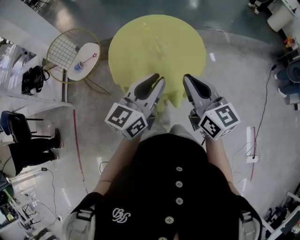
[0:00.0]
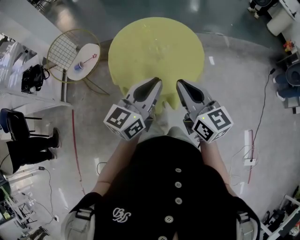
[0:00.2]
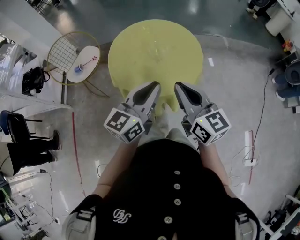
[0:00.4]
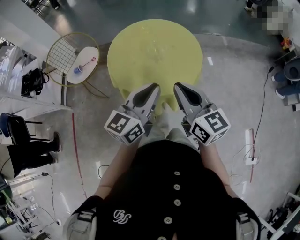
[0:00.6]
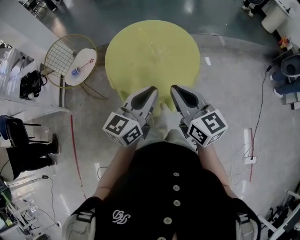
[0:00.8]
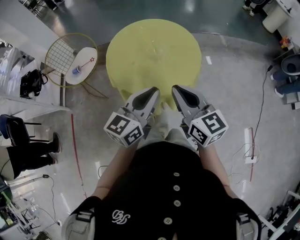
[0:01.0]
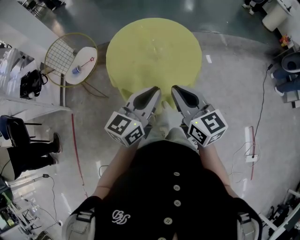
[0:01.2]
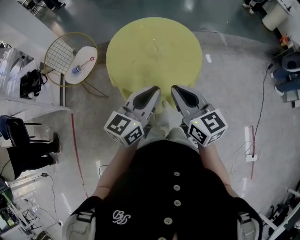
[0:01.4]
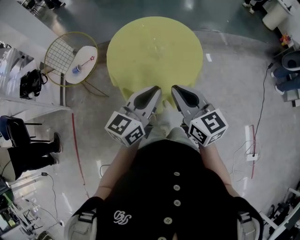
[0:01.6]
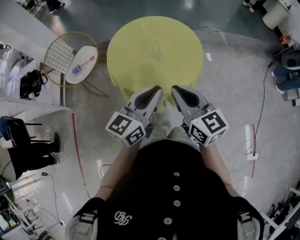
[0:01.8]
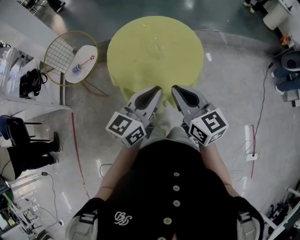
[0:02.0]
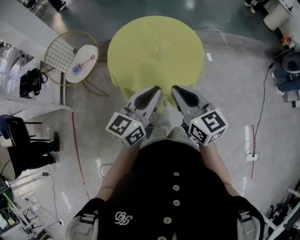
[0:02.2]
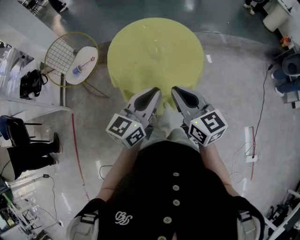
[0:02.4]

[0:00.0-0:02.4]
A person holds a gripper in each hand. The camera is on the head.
0:00.0 to 0:02.4: The grippers stay close to where they were, moving slightly.

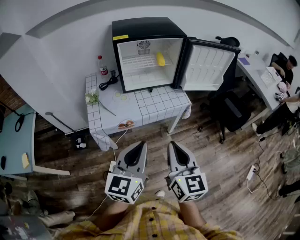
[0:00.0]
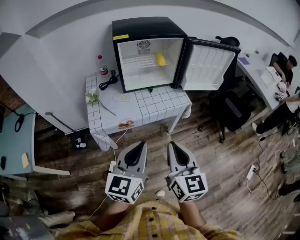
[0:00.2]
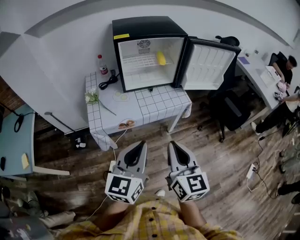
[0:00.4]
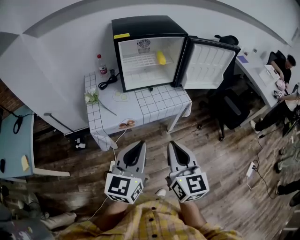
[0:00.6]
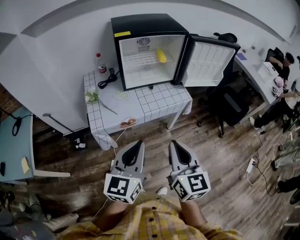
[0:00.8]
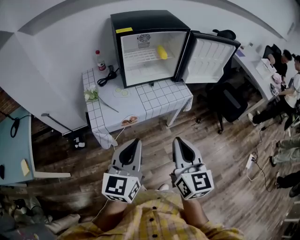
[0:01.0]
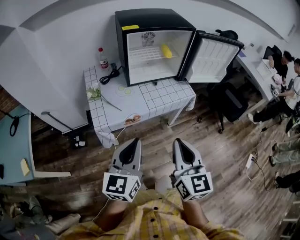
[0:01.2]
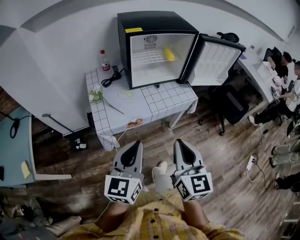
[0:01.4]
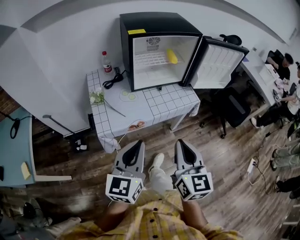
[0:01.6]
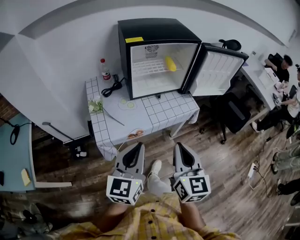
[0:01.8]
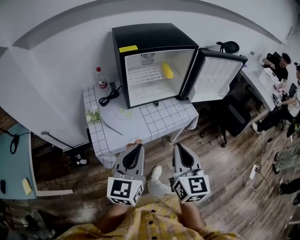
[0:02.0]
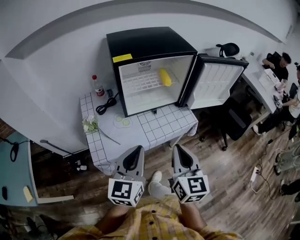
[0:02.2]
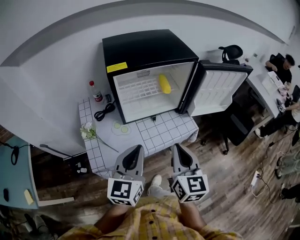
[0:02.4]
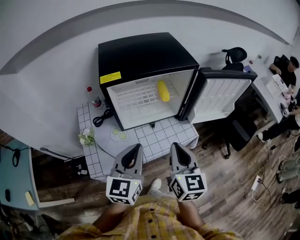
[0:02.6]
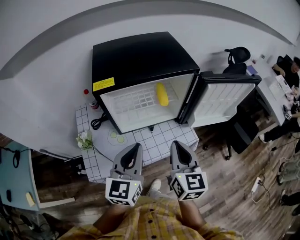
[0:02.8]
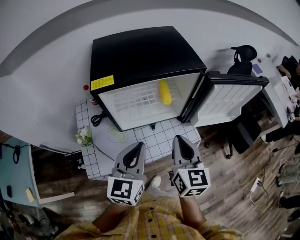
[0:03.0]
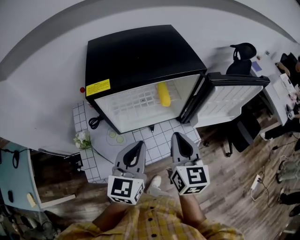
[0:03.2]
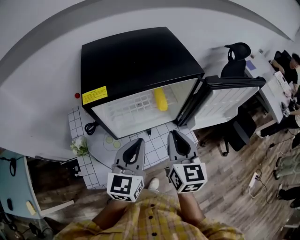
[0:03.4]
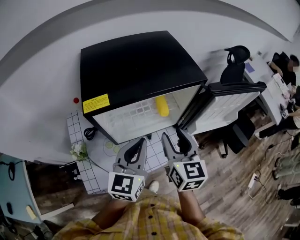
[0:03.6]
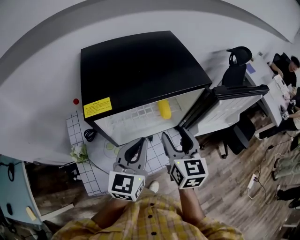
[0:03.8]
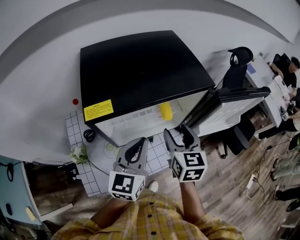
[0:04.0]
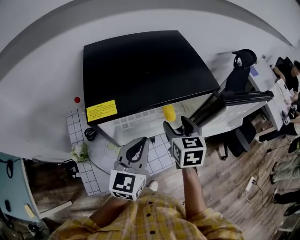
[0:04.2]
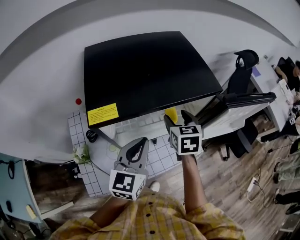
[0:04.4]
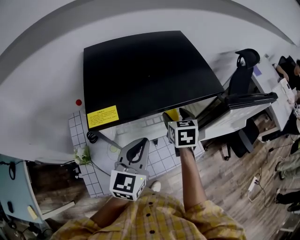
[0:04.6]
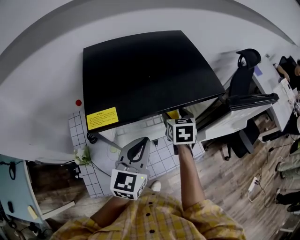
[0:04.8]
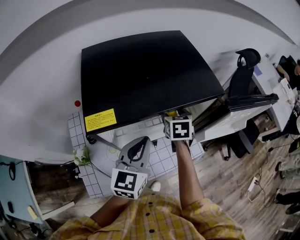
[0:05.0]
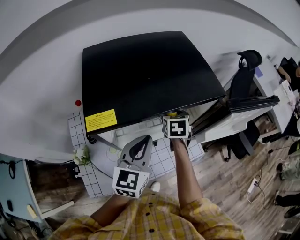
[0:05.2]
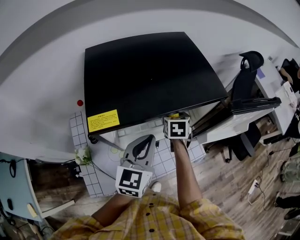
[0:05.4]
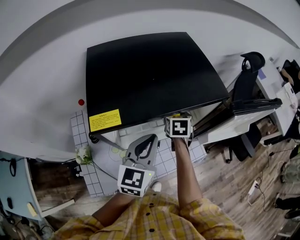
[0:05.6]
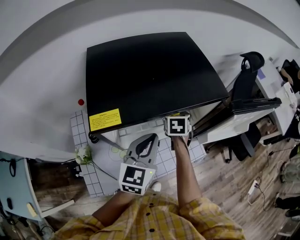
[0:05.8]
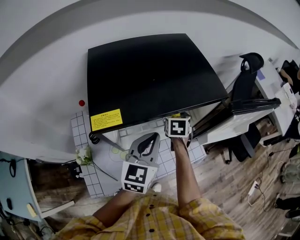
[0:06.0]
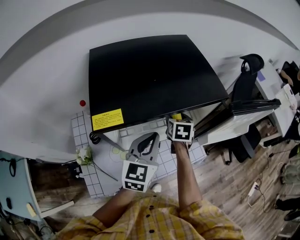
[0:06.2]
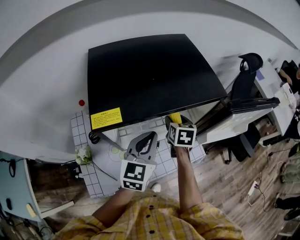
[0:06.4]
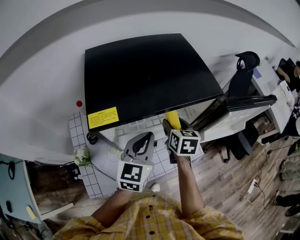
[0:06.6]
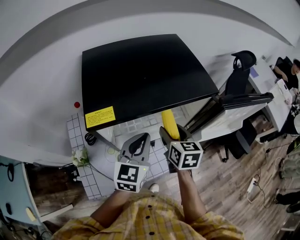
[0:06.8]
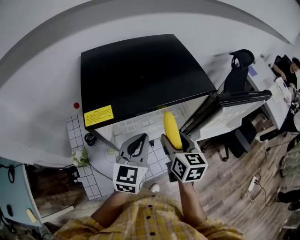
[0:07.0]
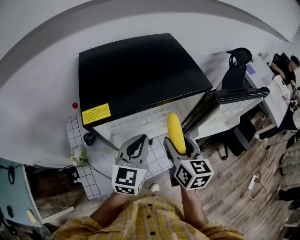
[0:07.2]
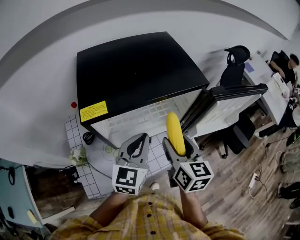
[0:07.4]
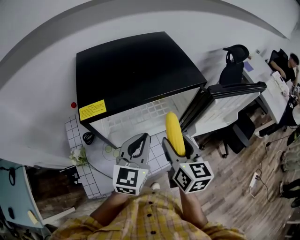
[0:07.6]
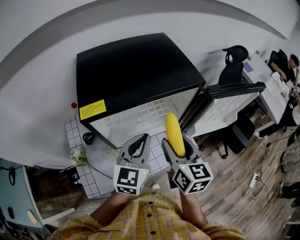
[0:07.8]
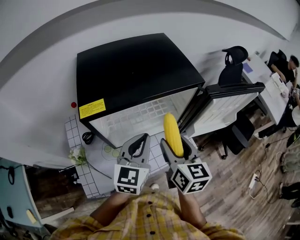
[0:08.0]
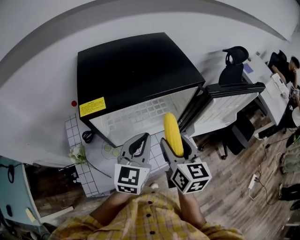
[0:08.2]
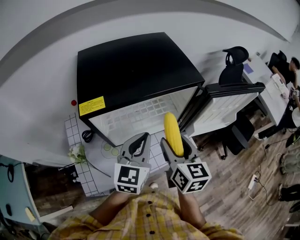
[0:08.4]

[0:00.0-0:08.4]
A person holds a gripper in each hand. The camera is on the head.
0:00.0 to 0:01.4: The two grippers go about 10 cm to the left.
0:01.4 to 0:02.8: Both grippers travel together forward, roughly 30 cm.
0:02.8 to 0:04.2: Both grippers travel together forward, about 15 cm. The right gripper turns by roughly 20 degrees, and opens up.
0:04.2 to 0:05.6: The right gripper travels downward and forward by about 15 cm.
0:05.6 to 0:07.0: The right gripper goes roughly 15 cm backward and upward, and rotates approximately 30 degrees.
0:07.0 to 0:08.4: The left gripper changes place by roughly 5 cm, while the right gripper goes some 5 cm backward.

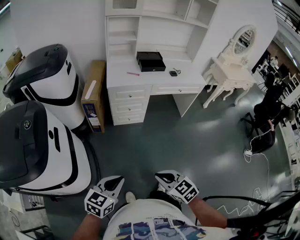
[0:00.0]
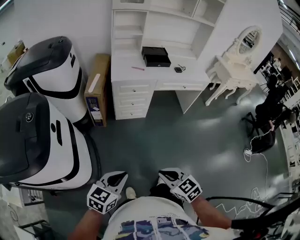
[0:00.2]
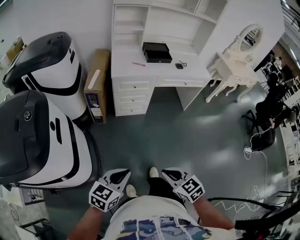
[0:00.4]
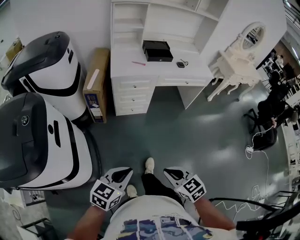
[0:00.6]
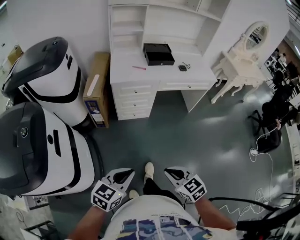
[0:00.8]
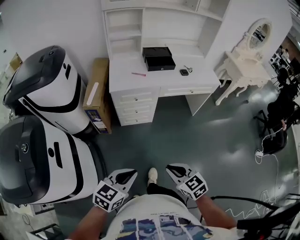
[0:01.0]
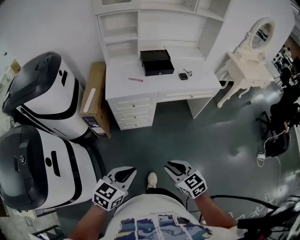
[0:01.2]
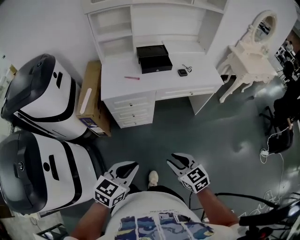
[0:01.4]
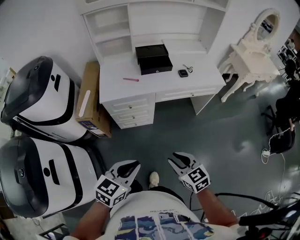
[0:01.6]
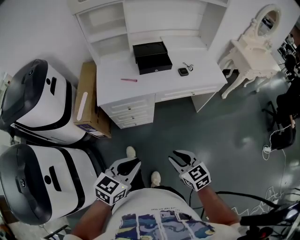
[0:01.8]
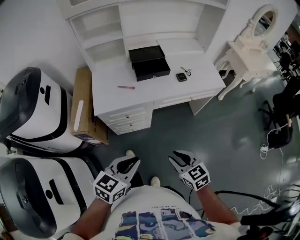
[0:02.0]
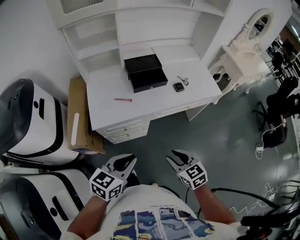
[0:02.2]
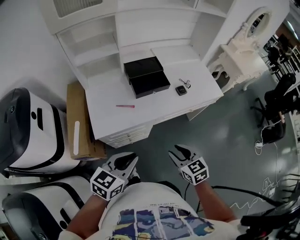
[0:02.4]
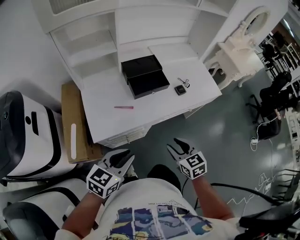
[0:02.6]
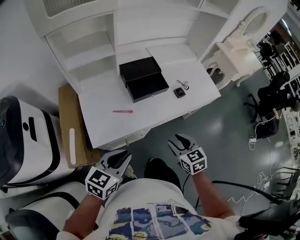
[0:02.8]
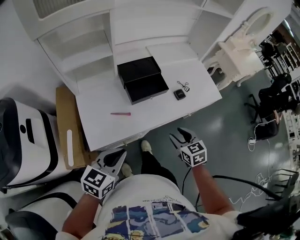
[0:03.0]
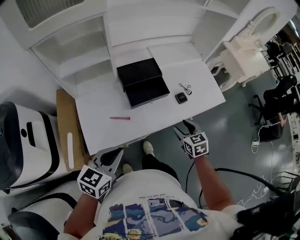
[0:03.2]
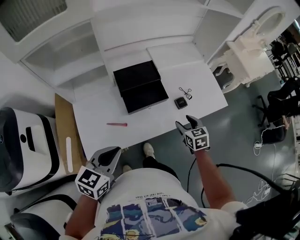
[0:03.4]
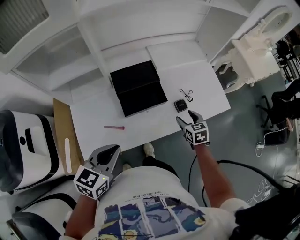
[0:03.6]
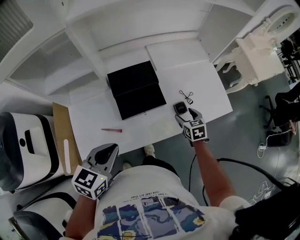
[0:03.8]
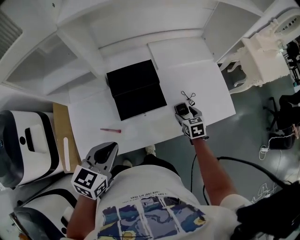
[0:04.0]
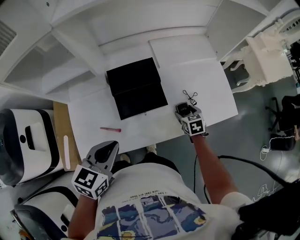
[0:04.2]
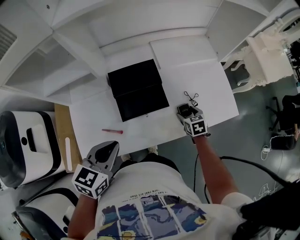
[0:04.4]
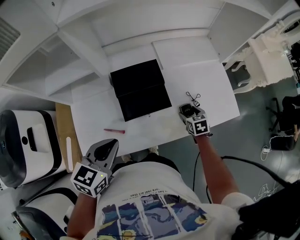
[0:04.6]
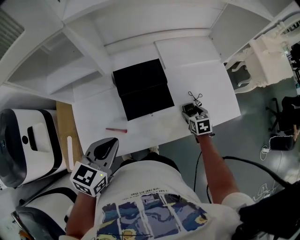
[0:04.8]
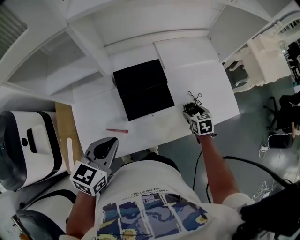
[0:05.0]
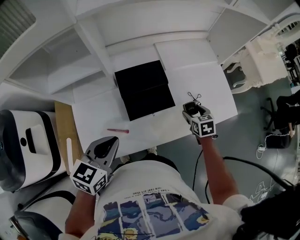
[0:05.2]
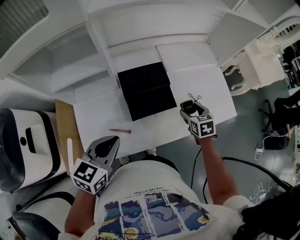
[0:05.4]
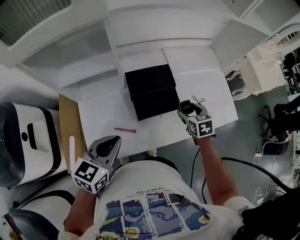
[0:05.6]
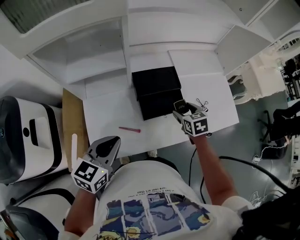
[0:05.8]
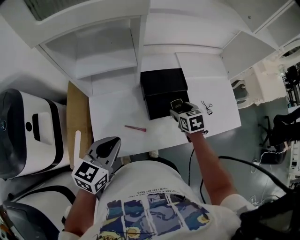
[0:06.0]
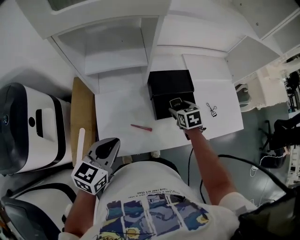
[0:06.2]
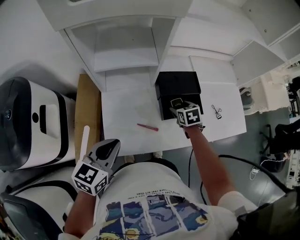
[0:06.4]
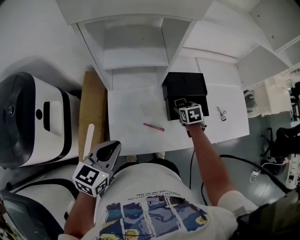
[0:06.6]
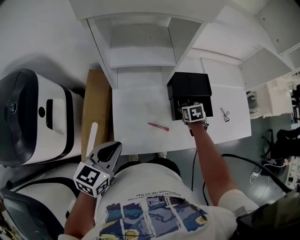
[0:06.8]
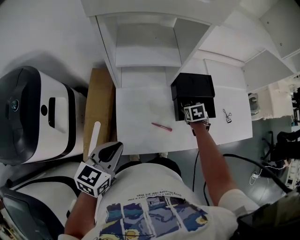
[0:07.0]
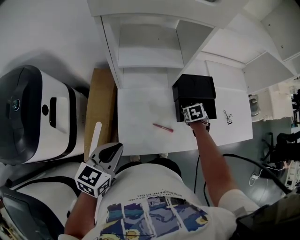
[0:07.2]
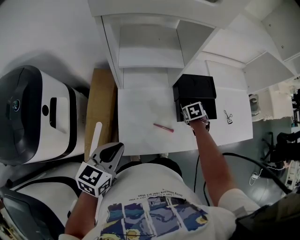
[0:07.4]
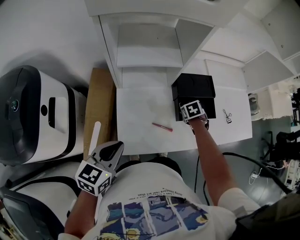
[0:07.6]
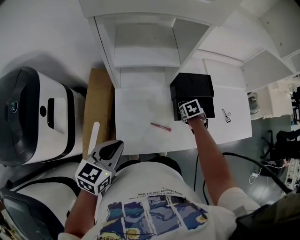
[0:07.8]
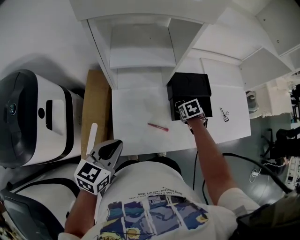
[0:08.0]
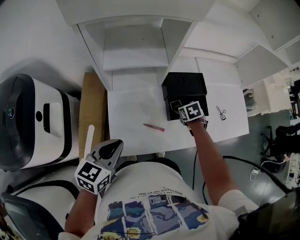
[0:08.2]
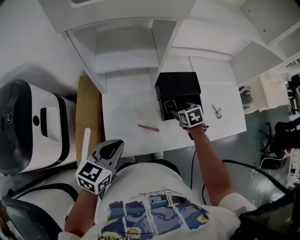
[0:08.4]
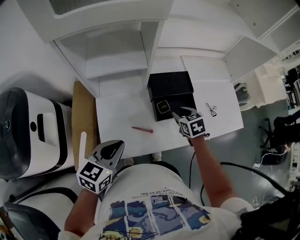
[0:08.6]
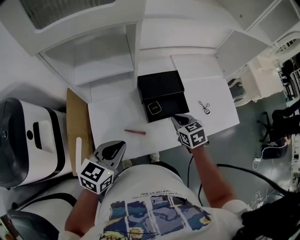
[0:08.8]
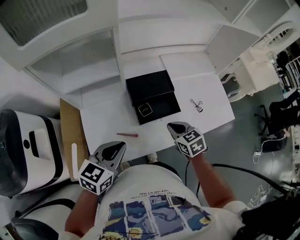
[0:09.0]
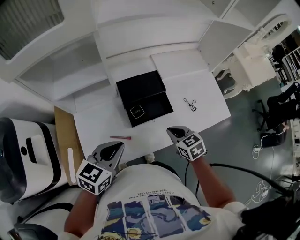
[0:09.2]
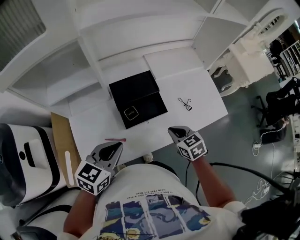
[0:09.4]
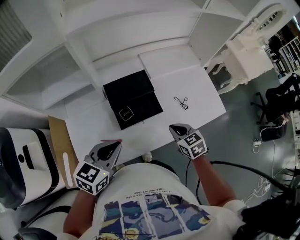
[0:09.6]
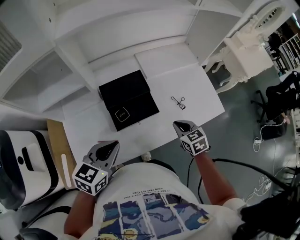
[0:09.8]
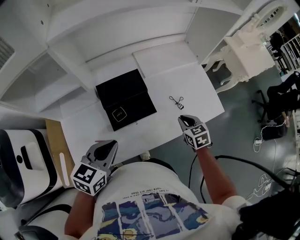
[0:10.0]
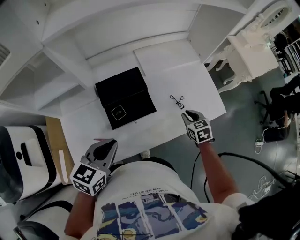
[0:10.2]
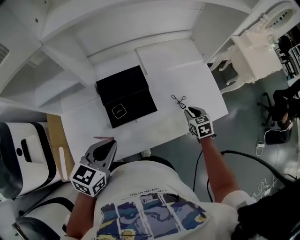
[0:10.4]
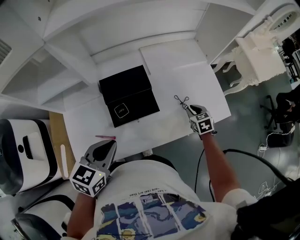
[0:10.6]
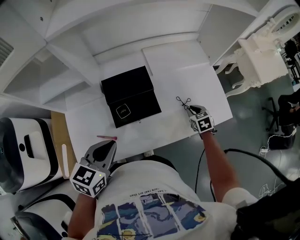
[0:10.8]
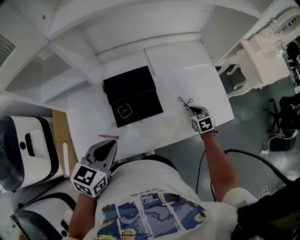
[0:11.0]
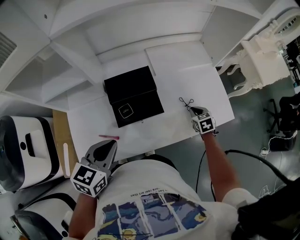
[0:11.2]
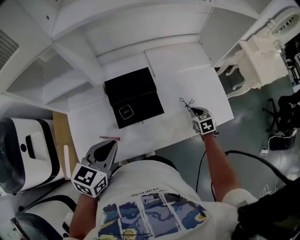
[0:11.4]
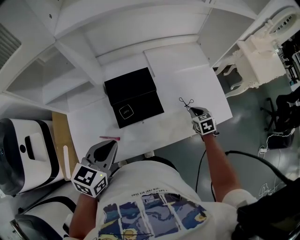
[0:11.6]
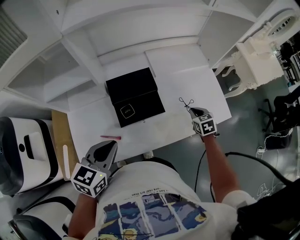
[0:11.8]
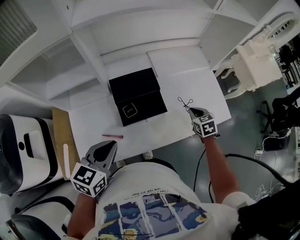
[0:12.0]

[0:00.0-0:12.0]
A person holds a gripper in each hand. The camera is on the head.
0:00.0 to 0:01.6: The left gripper shifts about 30 cm forward and to the right; the right gripper is displaced forward by about 30 cm.
0:01.6 to 0:03.0: The right gripper heads forward, covering roughly 35 cm, and changes its angle by about 20 degrees, while the left gripper travels forward and to the left by about 35 cm.
0:03.0 to 0:04.4: The right gripper shifts about 30 cm forward and downward, and opens up. Meanwhile the left gripper travels forward by approximately 20 cm.
0:04.4 to 0:06.0: The left gripper shifts roughly 10 cm to the left, while the right gripper moves to the left and upward, some 20 cm.
0:06.0 to 0:07.6: The right gripper goes about 10 cm downward, and rotates roughly 20 degrees, while the left gripper moves approximately 15 cm.
0:07.6 to 0:09.0: The right gripper is displaced upward by roughly 15 cm, rotates some 30 degrees, and closes up. Meanwhile the left gripper changes place by approximately 20 cm.
0:09.0 to 0:10.4: The left gripper moves to the right, about 10 cm. The right gripper goes approximately 25 cm to the right and forward.
0:10.4 to 0:12.0: The left gripper changes place by roughly 5 cm.

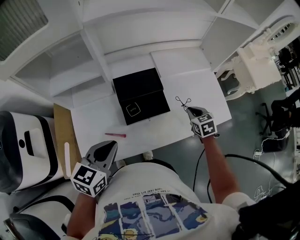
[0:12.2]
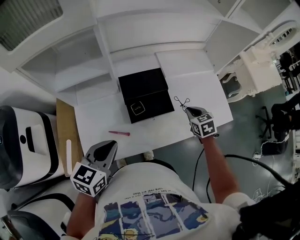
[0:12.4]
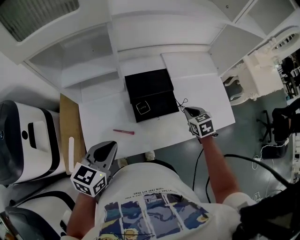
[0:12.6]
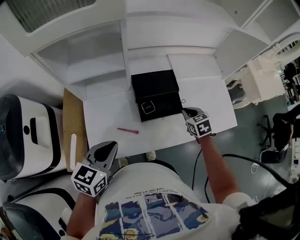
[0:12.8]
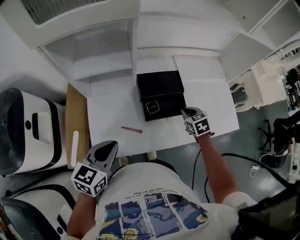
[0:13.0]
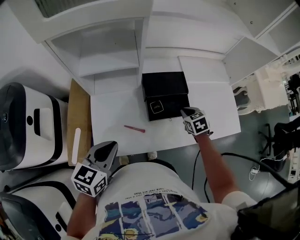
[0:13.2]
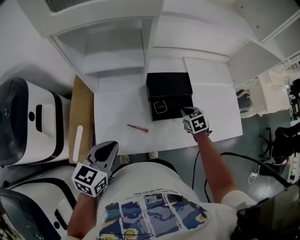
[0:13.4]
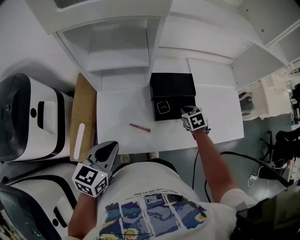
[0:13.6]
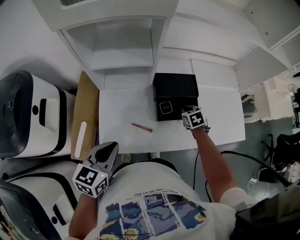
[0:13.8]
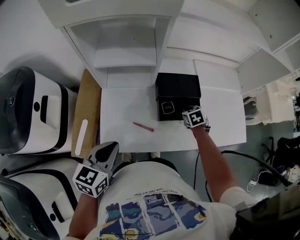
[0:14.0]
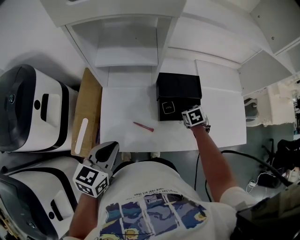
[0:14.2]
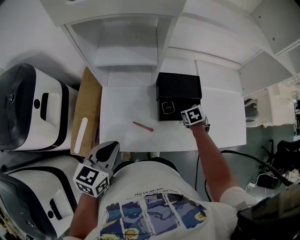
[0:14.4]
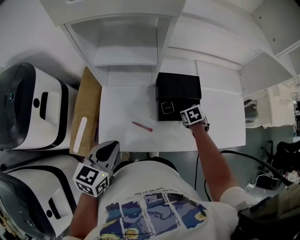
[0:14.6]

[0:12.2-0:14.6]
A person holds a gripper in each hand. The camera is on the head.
0:12.2 to 0:13.4: The right gripper heads to the left, covering about 15 cm, while the left gripper heads to the left and backward, covering about 10 cm.
0:13.4 to 0:14.6: The right gripper moves approximately 5 cm.
